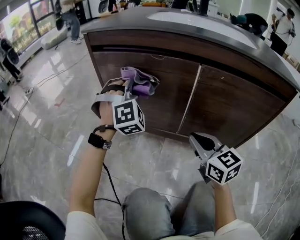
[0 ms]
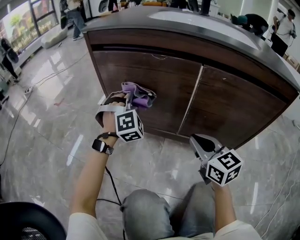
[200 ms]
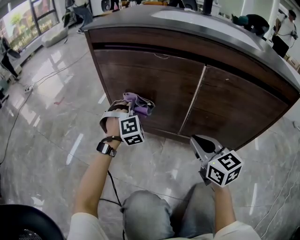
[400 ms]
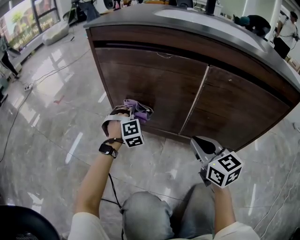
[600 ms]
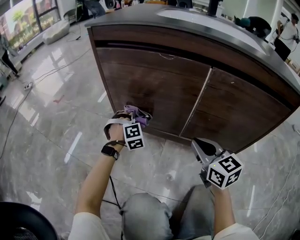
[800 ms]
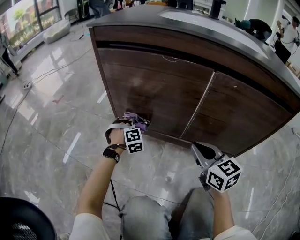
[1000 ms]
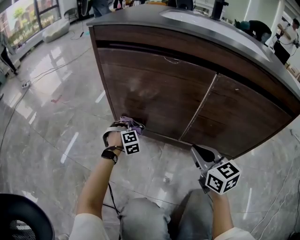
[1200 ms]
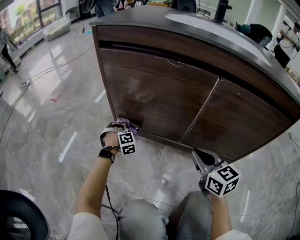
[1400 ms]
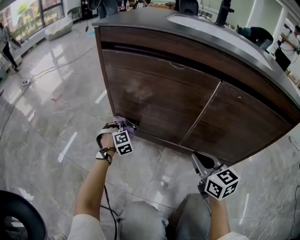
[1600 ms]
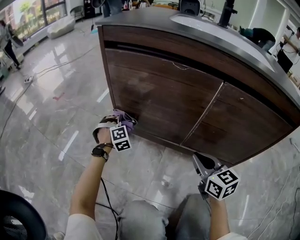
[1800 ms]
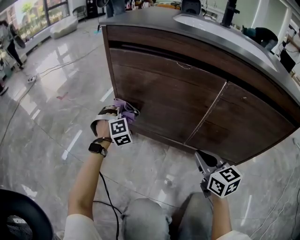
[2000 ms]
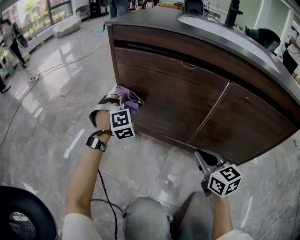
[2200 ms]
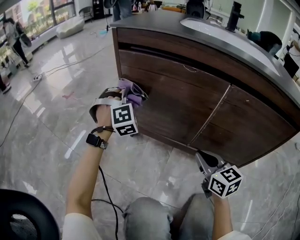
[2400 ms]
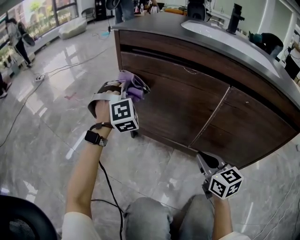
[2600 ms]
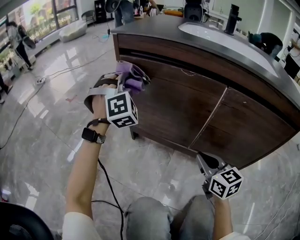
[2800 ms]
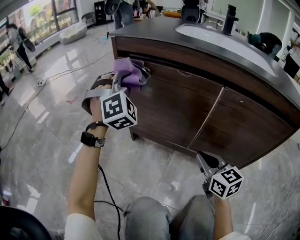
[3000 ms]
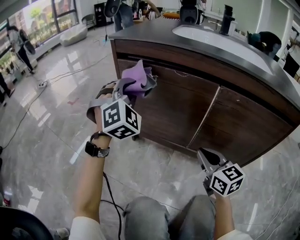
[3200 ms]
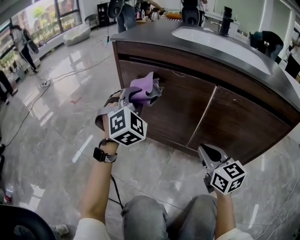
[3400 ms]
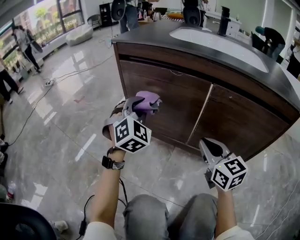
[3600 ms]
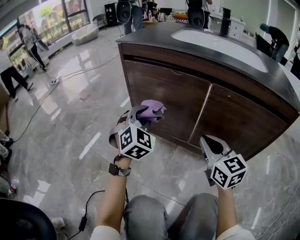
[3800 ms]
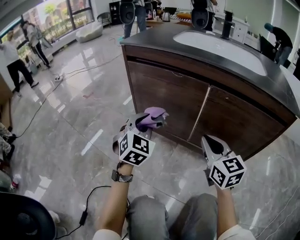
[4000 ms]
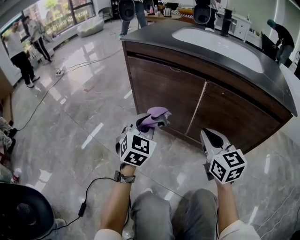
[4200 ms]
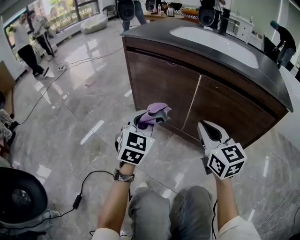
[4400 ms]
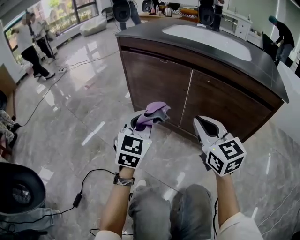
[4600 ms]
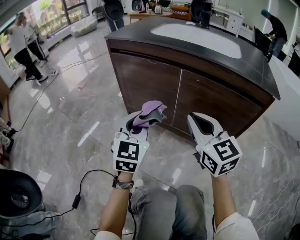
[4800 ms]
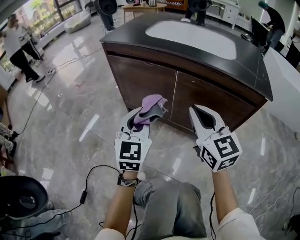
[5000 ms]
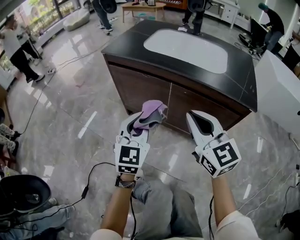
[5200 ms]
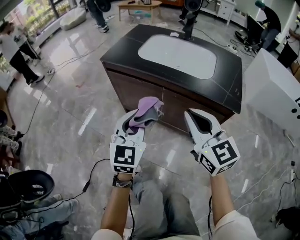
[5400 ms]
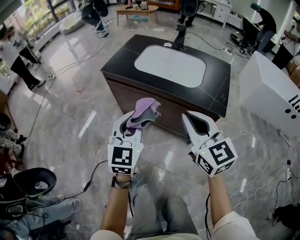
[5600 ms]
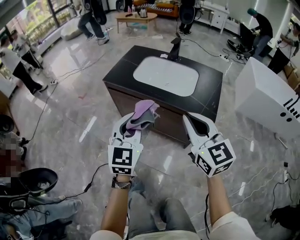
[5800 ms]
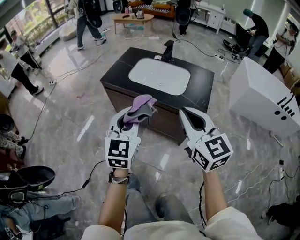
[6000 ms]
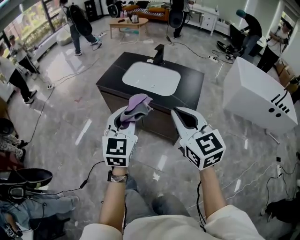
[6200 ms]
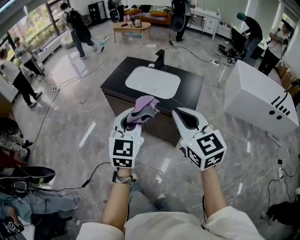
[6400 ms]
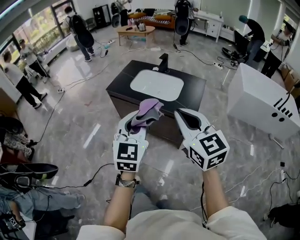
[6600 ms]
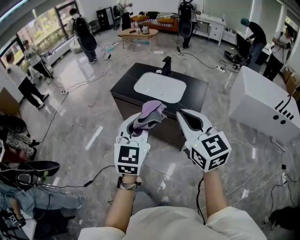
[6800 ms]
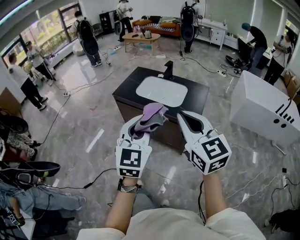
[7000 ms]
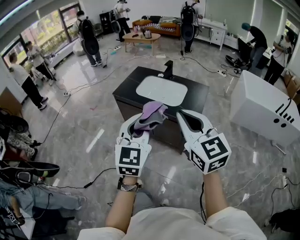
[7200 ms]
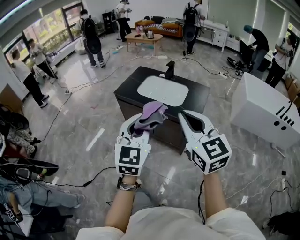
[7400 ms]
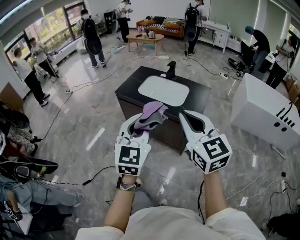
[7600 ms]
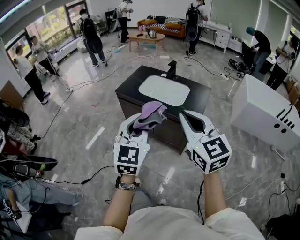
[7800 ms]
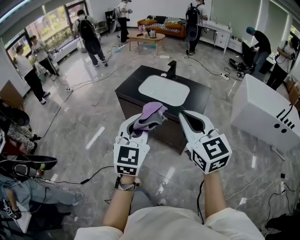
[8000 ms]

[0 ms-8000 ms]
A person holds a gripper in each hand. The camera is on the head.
0 ms to 1600 ms: The left gripper shifts approximately 30 cm downward, and swivels some 30 degrees. Meanwhile the right gripper goes approximately 5 cm downward.
1600 ms to 3200 ms: The left gripper goes some 40 cm upward, and tilts its fingers roughly 30 degrees upward.
3200 ms to 4800 ms: The right gripper goes some 20 cm upward and backward, while the left gripper moves backward, some 25 cm, and rolls counterclockwise, seen from behind, by roughly 50 degrees.
4800 ms to 6400 ms: Both grippers move upward, some 60 cm.
6400 ms to 8000 ms: The right gripper changes place by roughly 5 cm. The left gripper is displaced backward by about 5 cm.

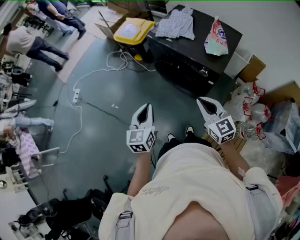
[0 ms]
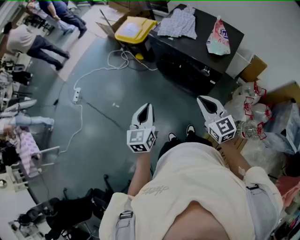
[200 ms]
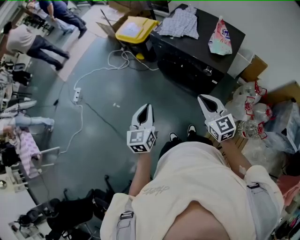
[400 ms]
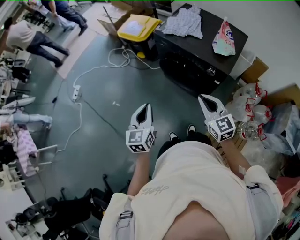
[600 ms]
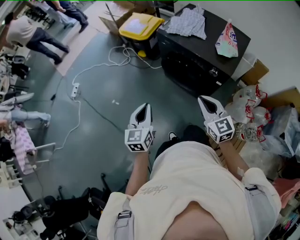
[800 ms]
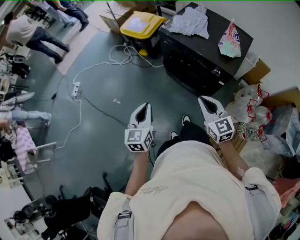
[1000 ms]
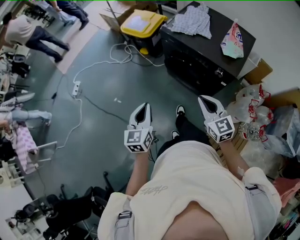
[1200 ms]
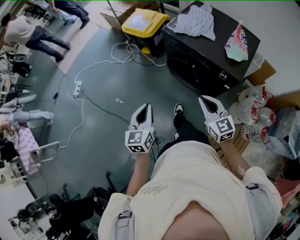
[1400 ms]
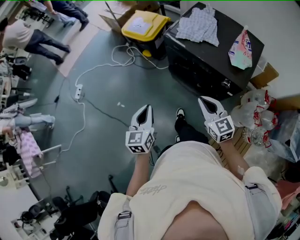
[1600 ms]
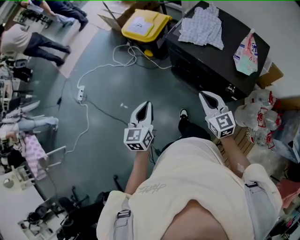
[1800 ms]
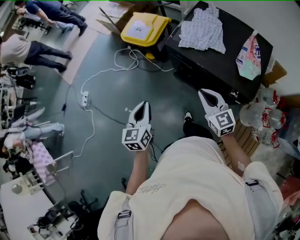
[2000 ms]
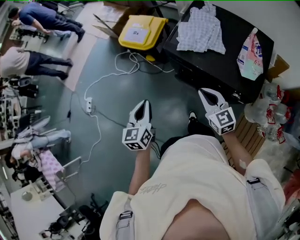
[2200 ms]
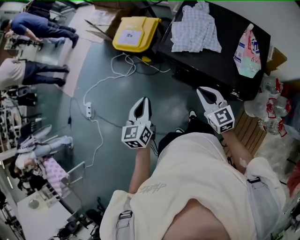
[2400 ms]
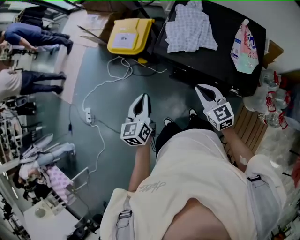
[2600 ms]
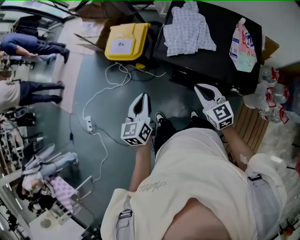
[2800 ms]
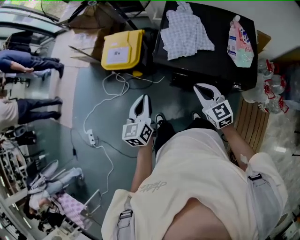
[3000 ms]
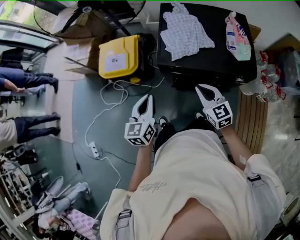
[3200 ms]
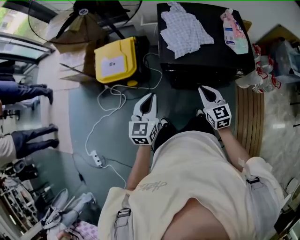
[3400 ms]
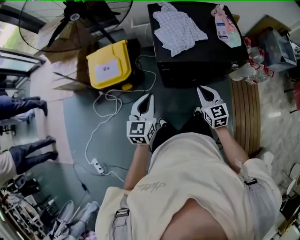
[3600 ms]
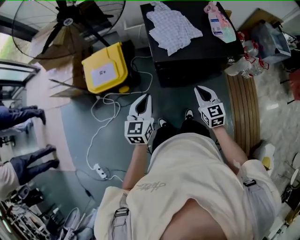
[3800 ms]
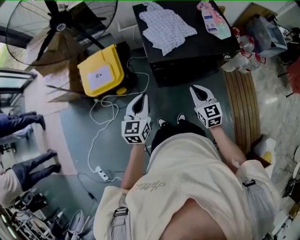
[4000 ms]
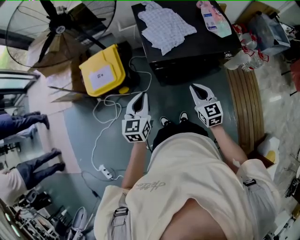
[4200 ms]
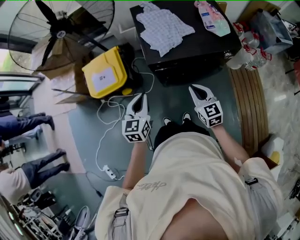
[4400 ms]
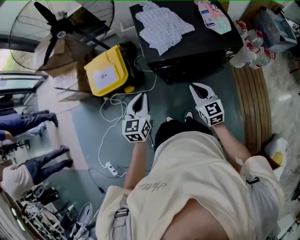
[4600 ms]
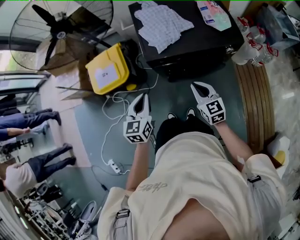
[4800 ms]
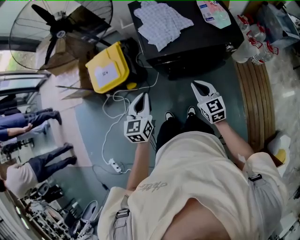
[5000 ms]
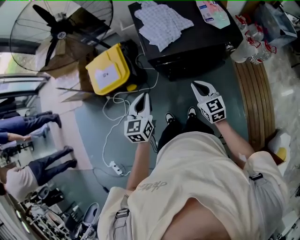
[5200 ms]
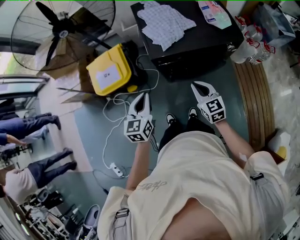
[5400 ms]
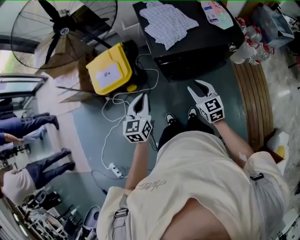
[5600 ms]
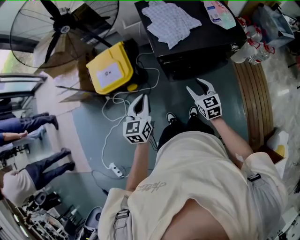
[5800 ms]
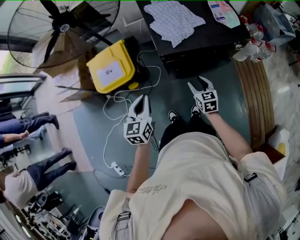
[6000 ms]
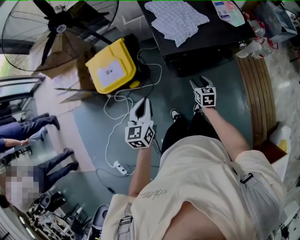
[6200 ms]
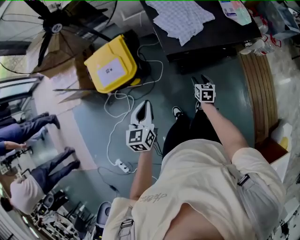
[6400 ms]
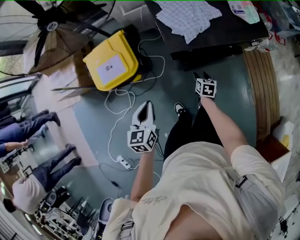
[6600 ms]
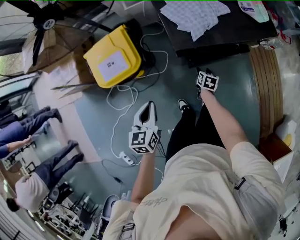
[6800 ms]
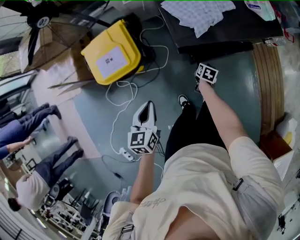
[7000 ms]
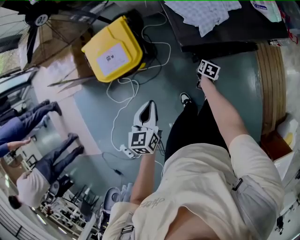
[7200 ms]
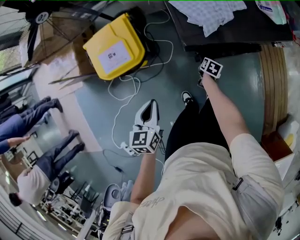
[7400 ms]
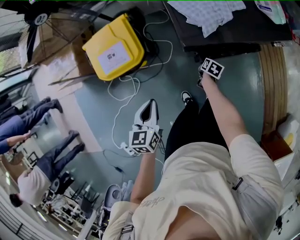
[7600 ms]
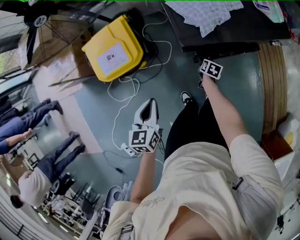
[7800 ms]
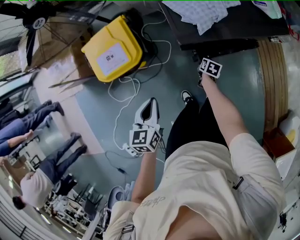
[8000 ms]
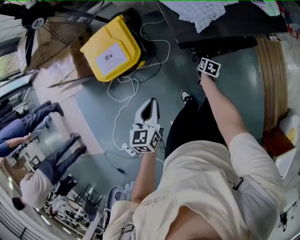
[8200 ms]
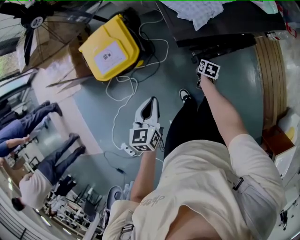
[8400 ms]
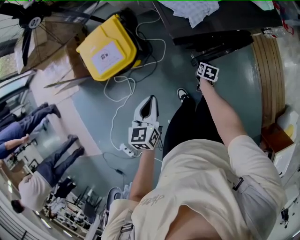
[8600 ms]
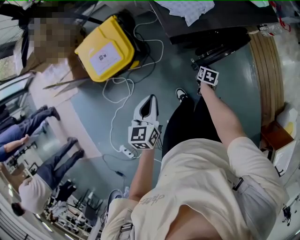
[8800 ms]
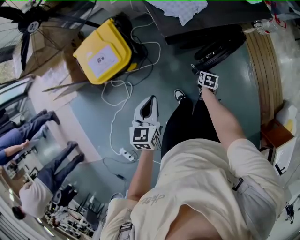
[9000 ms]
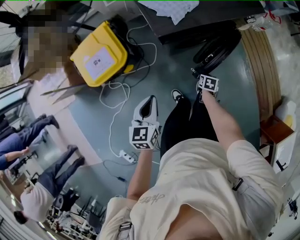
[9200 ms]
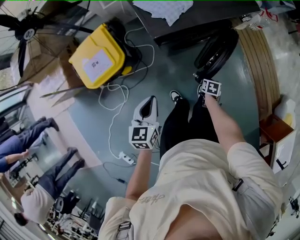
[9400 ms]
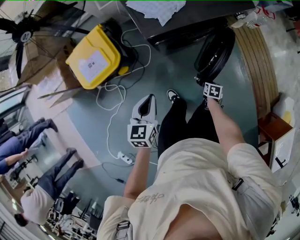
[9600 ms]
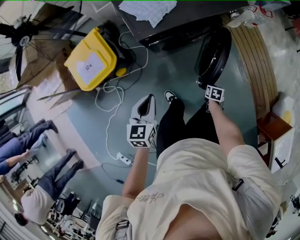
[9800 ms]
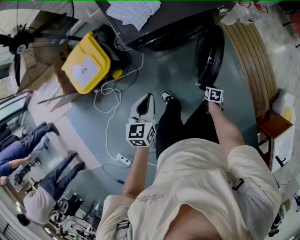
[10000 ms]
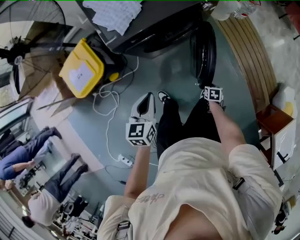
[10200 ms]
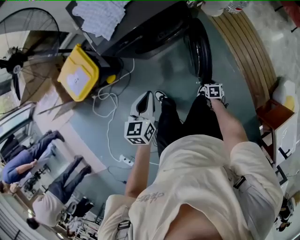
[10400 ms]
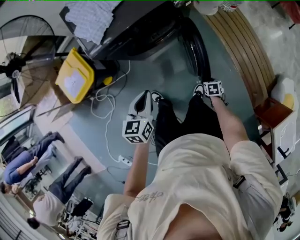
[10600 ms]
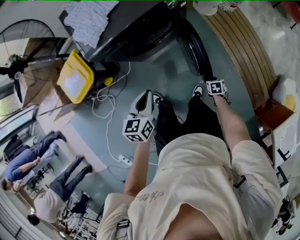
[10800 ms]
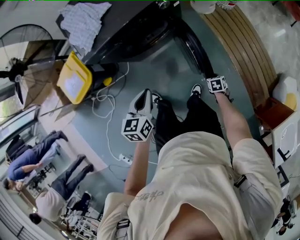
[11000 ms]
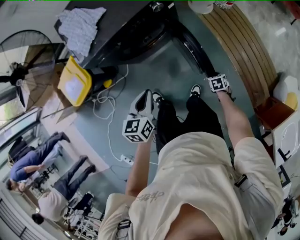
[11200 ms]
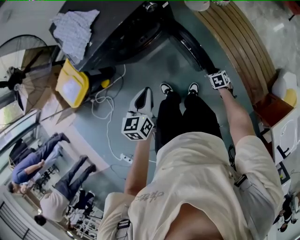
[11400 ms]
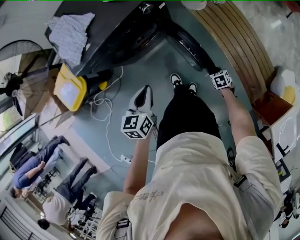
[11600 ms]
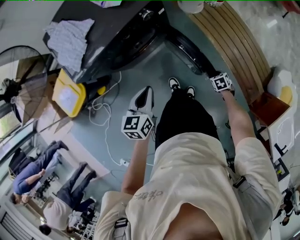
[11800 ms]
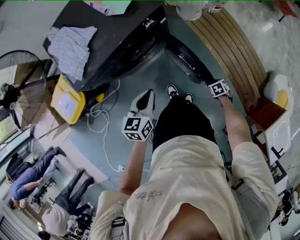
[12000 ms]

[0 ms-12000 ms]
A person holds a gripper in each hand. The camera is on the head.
0 ms to 1600 ms: The right gripper moves forward, to the left and downward, approximately 15 cm, while the left gripper moves forward and to the left, some 15 cm.
1600 ms to 3000 ms: Both grippers travel together forward, roughly 25 cm. The left gripper turns by about 20 degrees.
3000 ms to 4400 ms: The left gripper ends up roughly 10 cm from where it was, and turns by some 30 degrees, while the right gripper changes place by roughly 10 cm, and rotates approximately 30 degrees.
4400 ms to 6000 ms: The right gripper moves downward, approximately 10 cm, and opens its fingers. Meanwhile the left gripper is displaced to the left by about 5 cm.
6000 ms to 7600 ms: The left gripper is displaced downward and to the left by roughly 10 cm. Meanwhile the right gripper shifts about 25 cm downward, and swivels about 50 degrees.
7600 ms to 9000 ms: The right gripper is displaced backward and to the right by some 15 cm, and closes. The left gripper ends up roughly 5 cm from where it was.
9000 ms to 10400 ms: The left gripper ends up about 25 cm from where it was, while the right gripper ends up approximately 30 cm from where it was.
10400 ms to 12000 ms: The right gripper ends up some 20 cm from where it was, and swivels about 20 degrees. Meanwhile the left gripper moves some 20 cm.

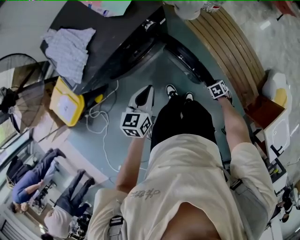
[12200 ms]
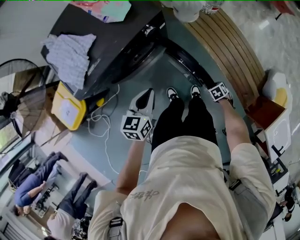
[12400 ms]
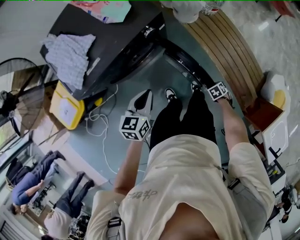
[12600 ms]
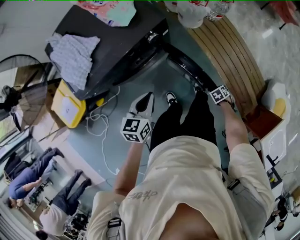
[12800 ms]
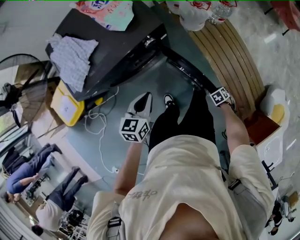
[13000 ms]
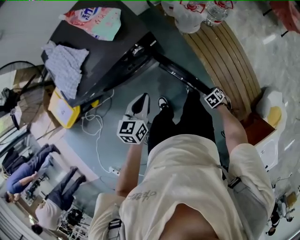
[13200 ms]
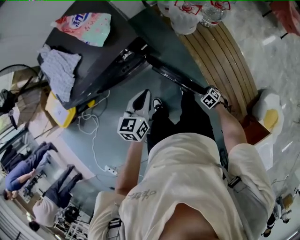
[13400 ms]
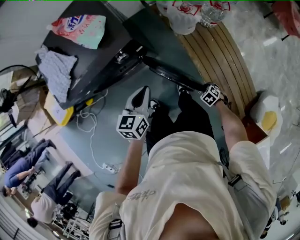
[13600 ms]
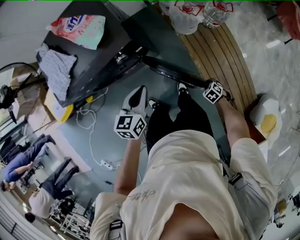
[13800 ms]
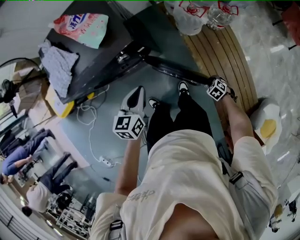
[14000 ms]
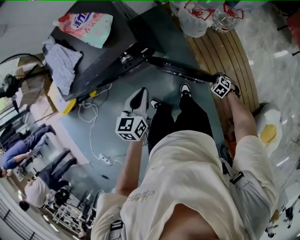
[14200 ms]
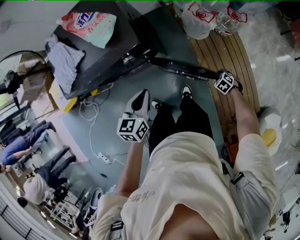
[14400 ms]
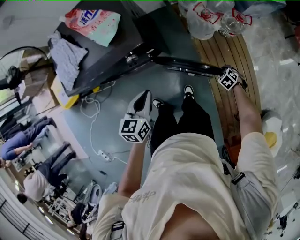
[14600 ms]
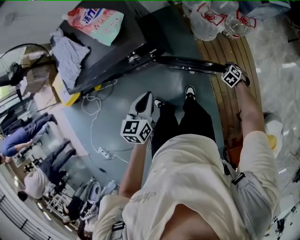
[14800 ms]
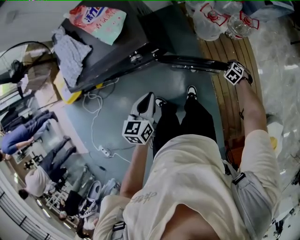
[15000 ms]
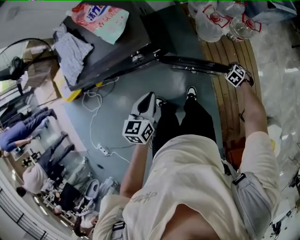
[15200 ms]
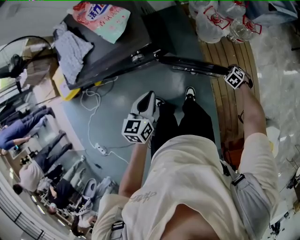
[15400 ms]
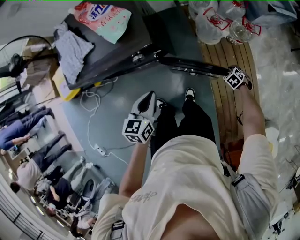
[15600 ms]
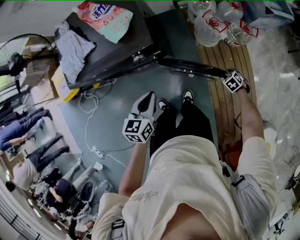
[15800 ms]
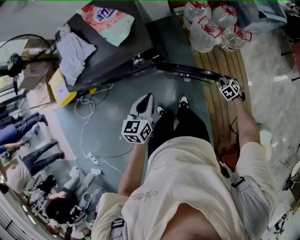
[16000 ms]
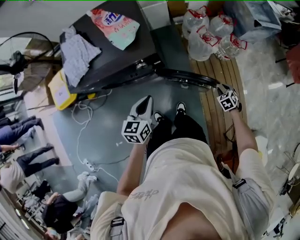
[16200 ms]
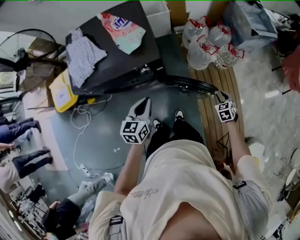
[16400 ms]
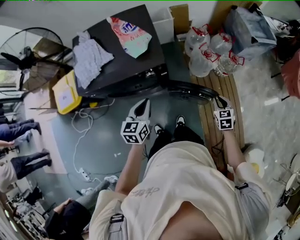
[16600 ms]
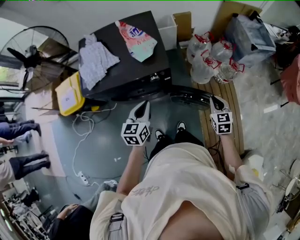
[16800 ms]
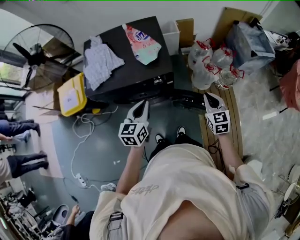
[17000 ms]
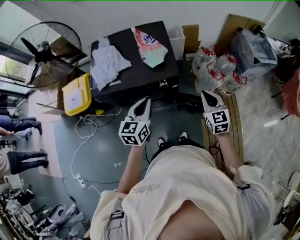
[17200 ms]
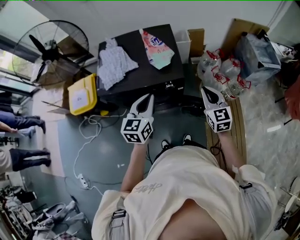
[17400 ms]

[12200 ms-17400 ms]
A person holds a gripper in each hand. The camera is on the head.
12200 ms to 14000 ms: The right gripper moves roughly 25 cm, and changes its angle by approximately 40 degrees; the left gripper moves about 20 cm.
14000 ms to 15600 ms: The right gripper ends up about 15 cm from where it was.
15600 ms to 17400 ms: The left gripper travels upward by approximately 15 cm, and swivels approximately 20 degrees; the right gripper heads upward, covering about 40 cm, tips its fingers upward by about 60 degrees, and closes.
